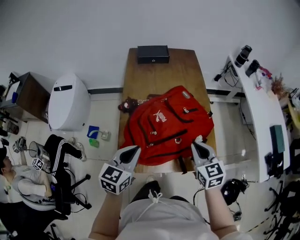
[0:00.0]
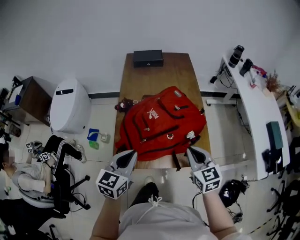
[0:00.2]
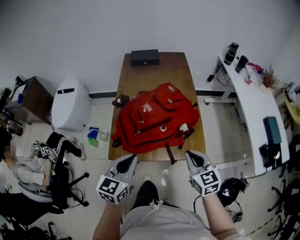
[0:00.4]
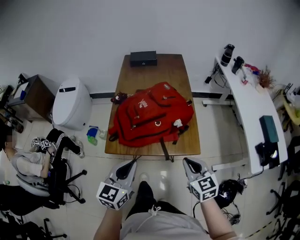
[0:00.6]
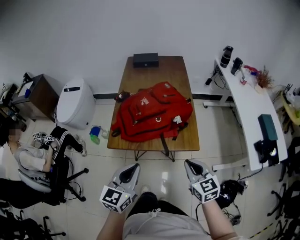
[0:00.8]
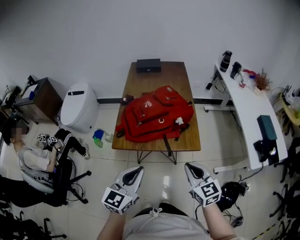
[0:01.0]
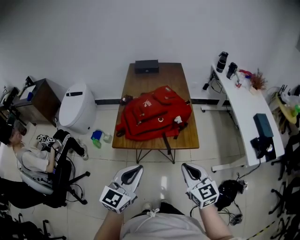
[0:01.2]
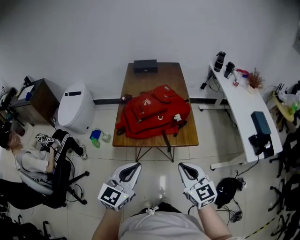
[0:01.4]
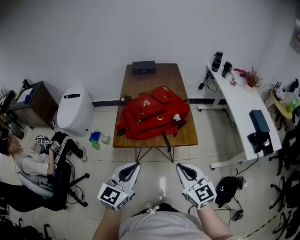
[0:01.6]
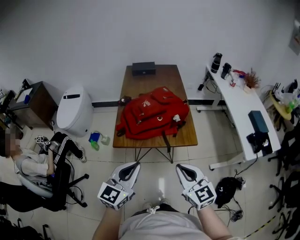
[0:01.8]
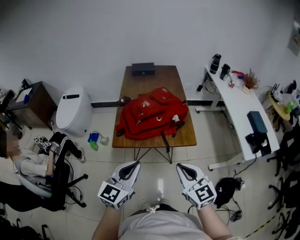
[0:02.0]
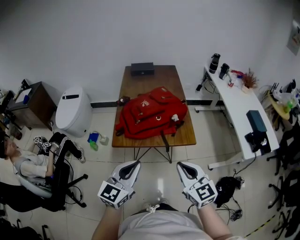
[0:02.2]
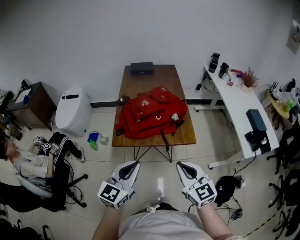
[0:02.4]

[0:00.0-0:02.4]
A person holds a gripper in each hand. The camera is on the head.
0.0 to 1.2 s: The two grippers go about 30 cm backward.
1.2 to 2.4 s: The right gripper shifts by approximately 5 cm.

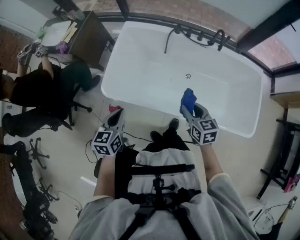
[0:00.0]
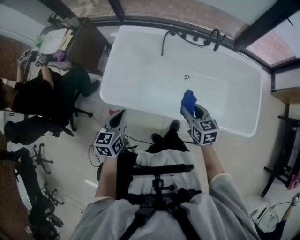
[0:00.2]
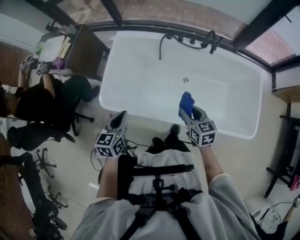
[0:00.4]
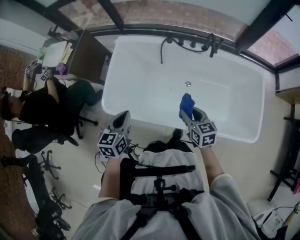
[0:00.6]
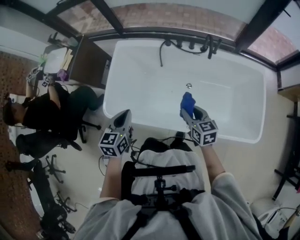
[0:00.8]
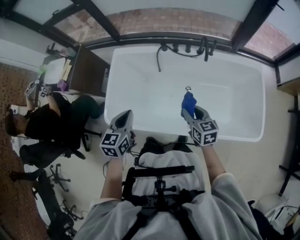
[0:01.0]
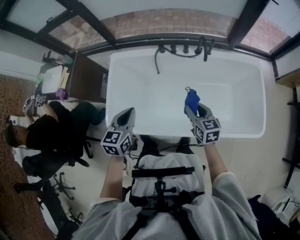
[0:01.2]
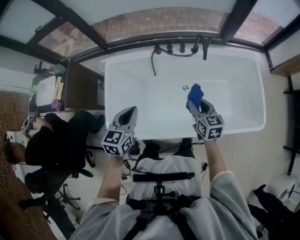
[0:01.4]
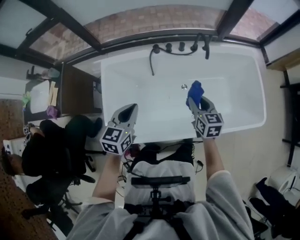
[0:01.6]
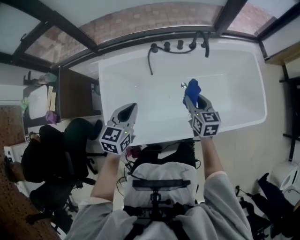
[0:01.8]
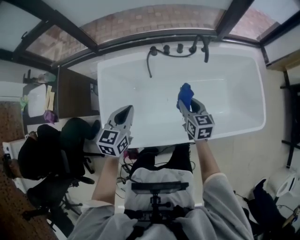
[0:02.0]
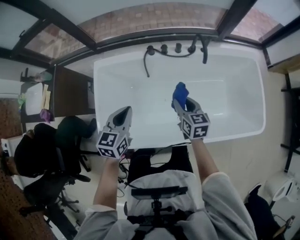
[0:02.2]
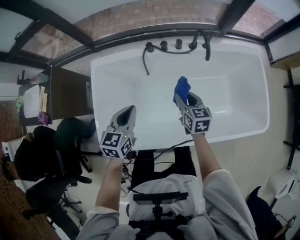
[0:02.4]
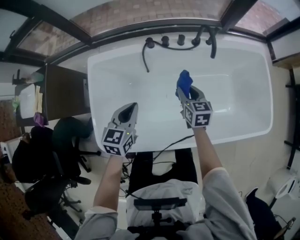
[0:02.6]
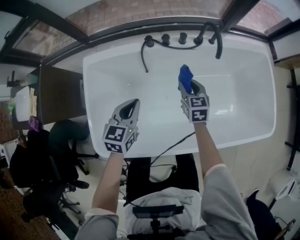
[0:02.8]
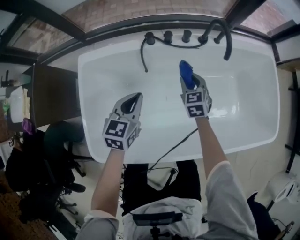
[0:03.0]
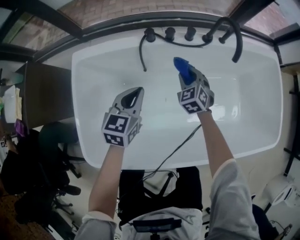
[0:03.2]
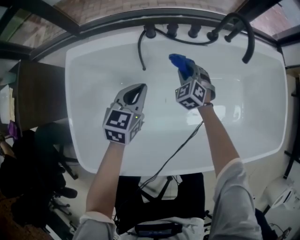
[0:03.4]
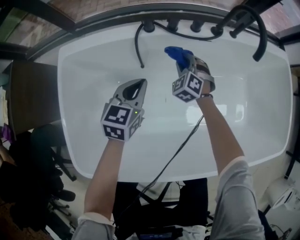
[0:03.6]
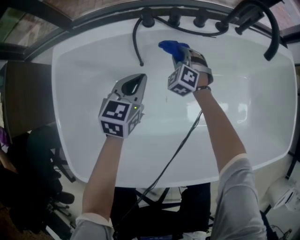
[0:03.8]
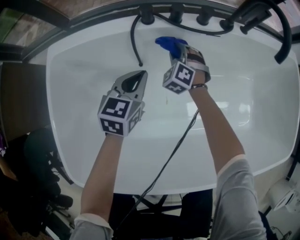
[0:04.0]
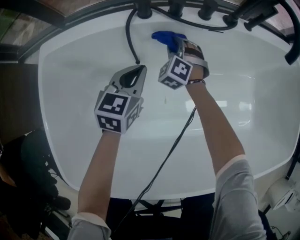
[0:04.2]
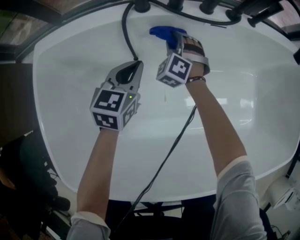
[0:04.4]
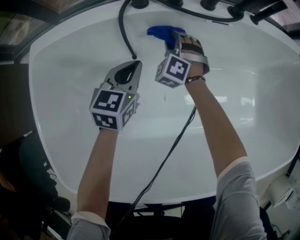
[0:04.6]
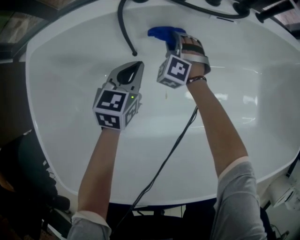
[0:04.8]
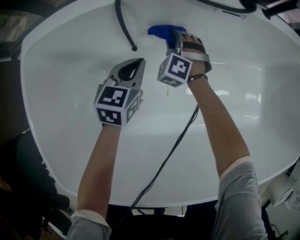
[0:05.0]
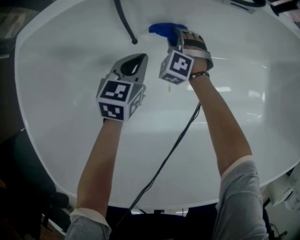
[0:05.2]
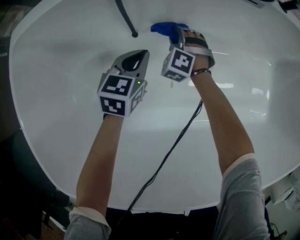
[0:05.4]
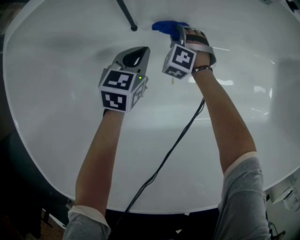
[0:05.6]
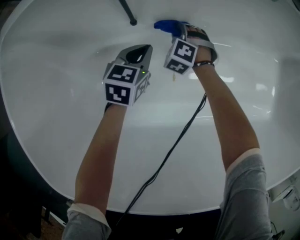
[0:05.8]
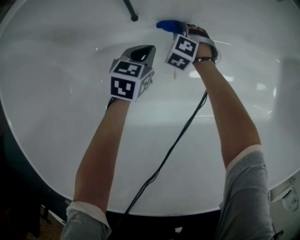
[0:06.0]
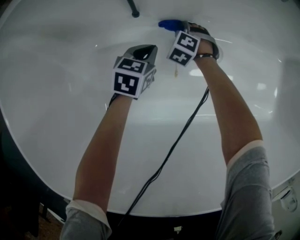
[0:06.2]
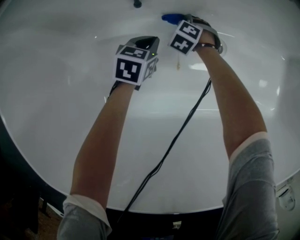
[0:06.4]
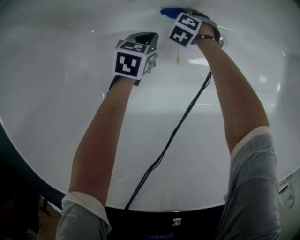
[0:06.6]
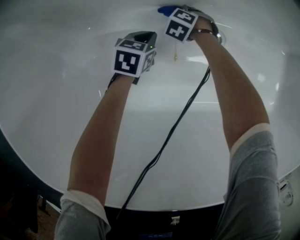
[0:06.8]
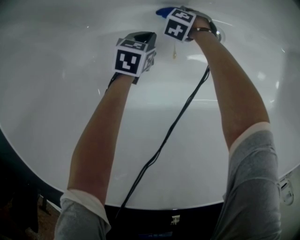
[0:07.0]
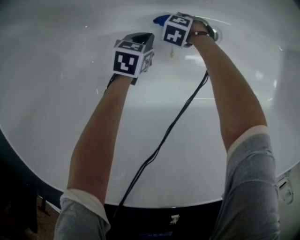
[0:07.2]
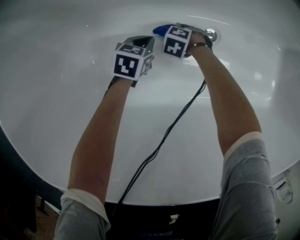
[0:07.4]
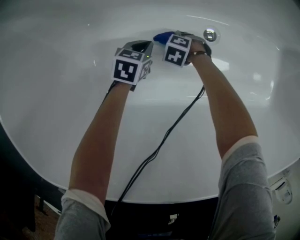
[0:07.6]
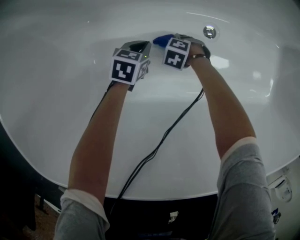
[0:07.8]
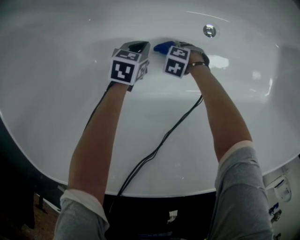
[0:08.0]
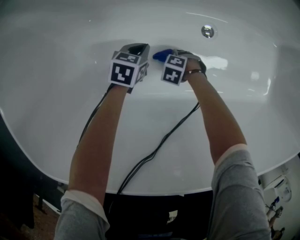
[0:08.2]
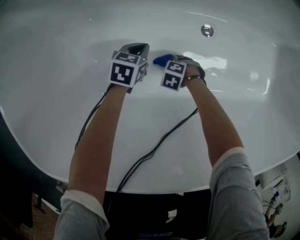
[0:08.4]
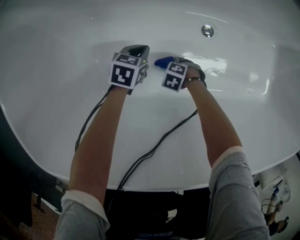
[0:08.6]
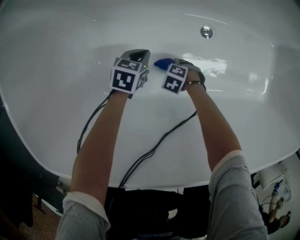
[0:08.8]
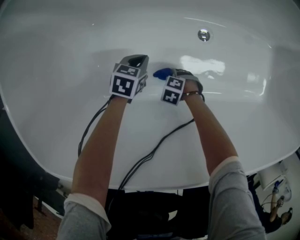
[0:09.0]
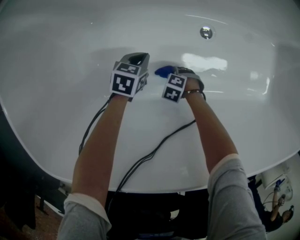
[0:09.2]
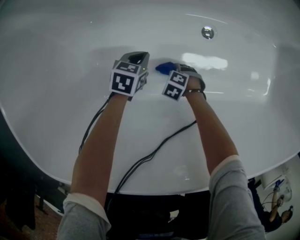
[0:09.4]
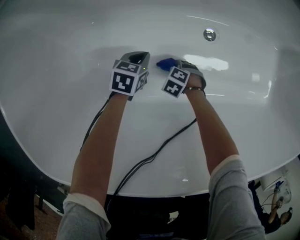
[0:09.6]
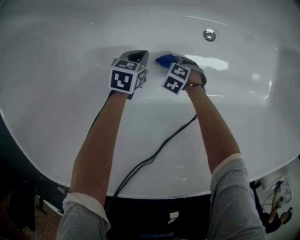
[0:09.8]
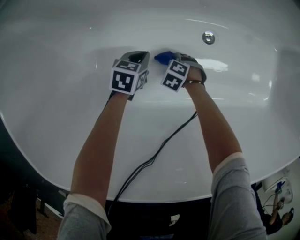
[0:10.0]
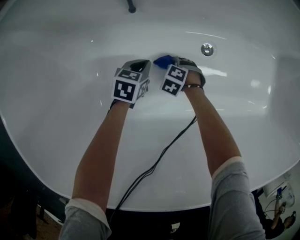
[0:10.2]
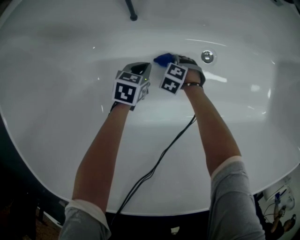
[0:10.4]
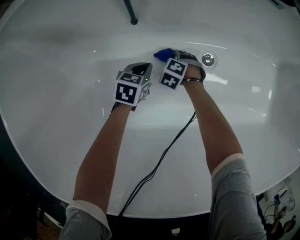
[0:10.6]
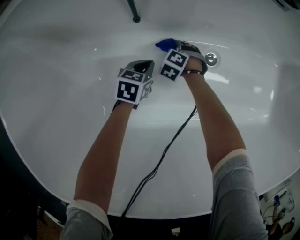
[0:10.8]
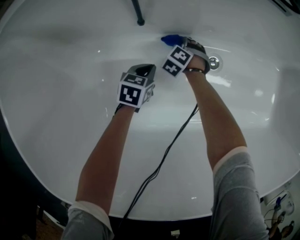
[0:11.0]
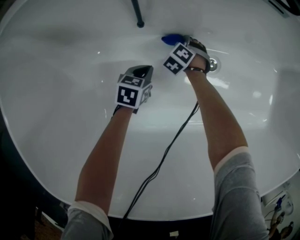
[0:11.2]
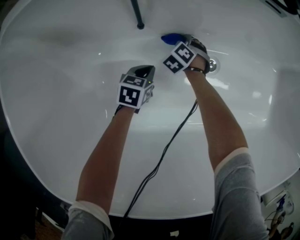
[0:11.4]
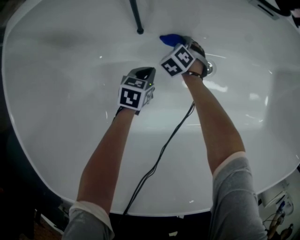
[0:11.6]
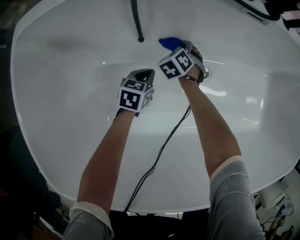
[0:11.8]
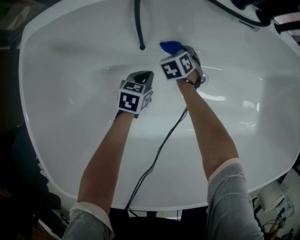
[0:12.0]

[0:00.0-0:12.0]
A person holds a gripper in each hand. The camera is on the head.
0.0 to 1.6 s: The right gripper moves about 20 cm, and changes its angle by some 30 degrees. Meanwhile the left gripper shifts by roughly 30 cm, and turns by approximately 30 degrees.
1.6 to 3.0 s: Both grippers travel together downward and forward, approximately 30 cm. The right gripper turns by about 20 degrees.
3.0 to 4.4 s: The left gripper is displaced downward and forward by some 30 cm. The right gripper moves downward, forward and to the left, approximately 30 cm, and rolls counterclockwise, seen from behind, by roughly 50 degrees.
4.4 to 6.0 s: The grippers both shift downward by roughly 25 cm. The right gripper rotates about 20 degrees.
6.0 to 7.6 s: The left gripper moves downward, roughly 5 cm, while the right gripper ends up about 15 cm from where it was, and turns by approximately 30 degrees.
7.6 to 9.0 s: The left gripper shifts by approximately 5 cm. Meanwhile the right gripper ends up roughly 15 cm from where it was.
9.0 to 10.4 s: The right gripper changes place by roughly 20 cm; the left gripper ends up roughly 10 cm from where it was.
10.4 to 12.0 s: The left gripper moves upward, some 10 cm. The right gripper moves upward, some 15 cm, and swivels about 50 degrees.

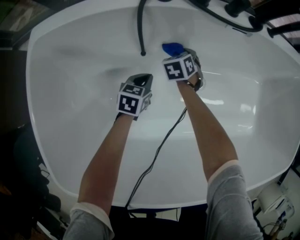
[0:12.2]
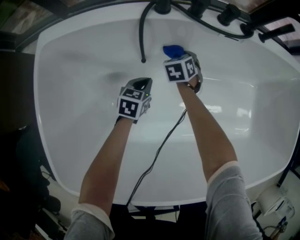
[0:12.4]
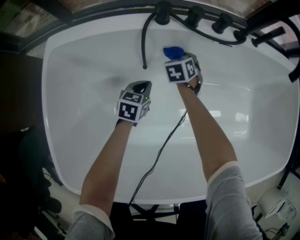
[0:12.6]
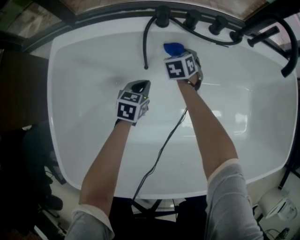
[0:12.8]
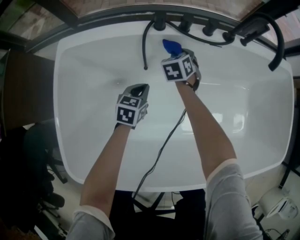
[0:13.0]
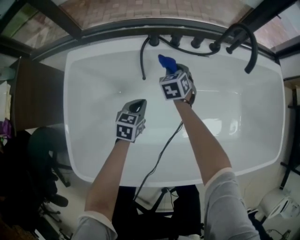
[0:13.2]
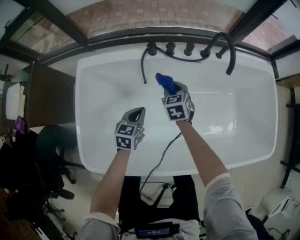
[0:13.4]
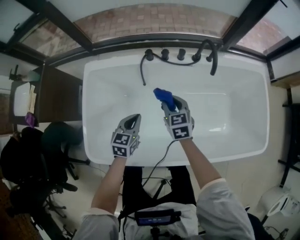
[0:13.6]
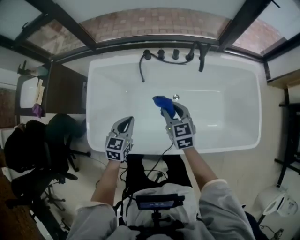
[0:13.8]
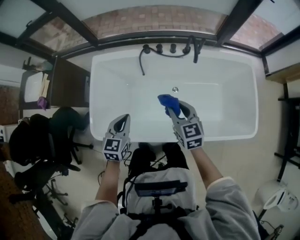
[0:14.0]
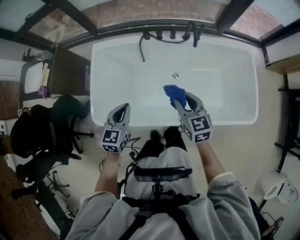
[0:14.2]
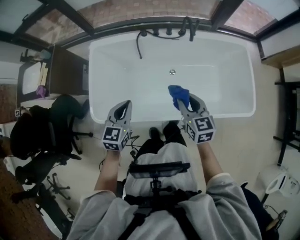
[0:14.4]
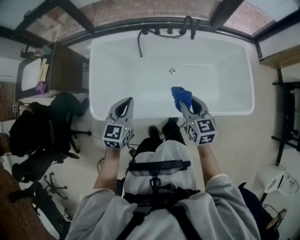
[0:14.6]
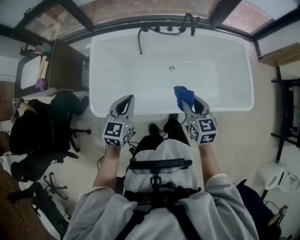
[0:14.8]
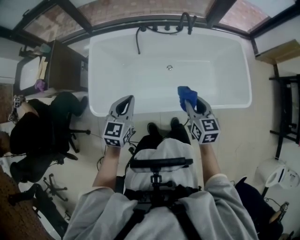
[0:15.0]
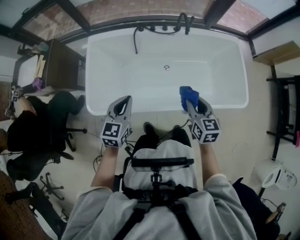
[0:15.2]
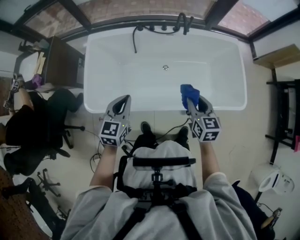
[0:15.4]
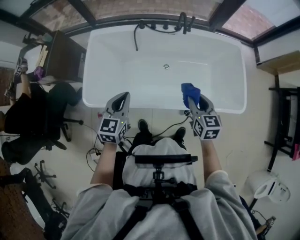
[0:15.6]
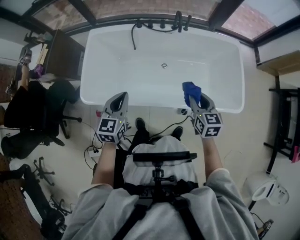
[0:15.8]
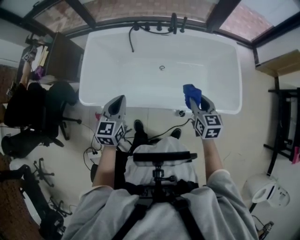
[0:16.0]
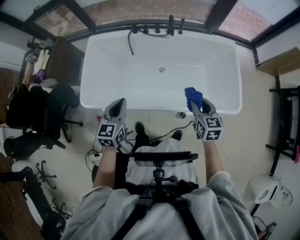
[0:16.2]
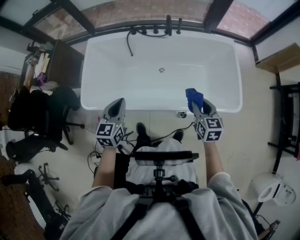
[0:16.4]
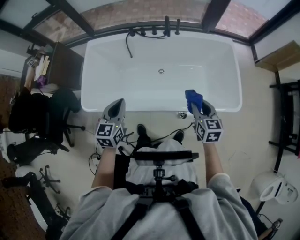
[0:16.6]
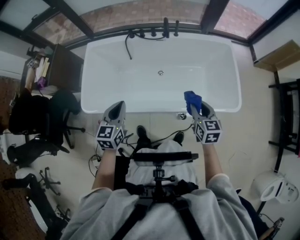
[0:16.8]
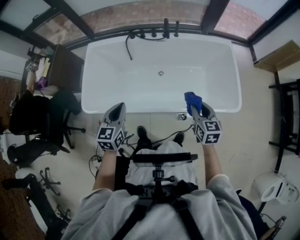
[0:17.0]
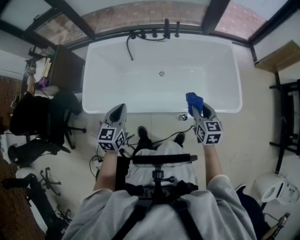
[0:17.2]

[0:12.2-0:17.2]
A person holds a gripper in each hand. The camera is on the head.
12.2 to 13.8 s: The two grippers go roughly 50 cm upward. The right gripper swivels about 40 degrees.
13.8 to 15.6 s: The left gripper goes some 25 cm backward and upward. The right gripper travels backward, to the right and upward by about 30 cm.
15.6 to 17.2 s: The left gripper heads to the right and backward, covering about 10 cm. The right gripper heads to the right and backward, covering some 15 cm.

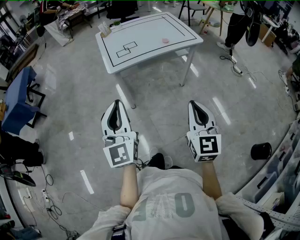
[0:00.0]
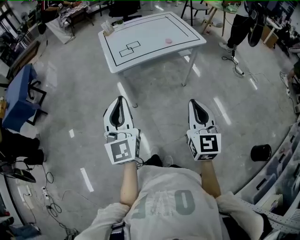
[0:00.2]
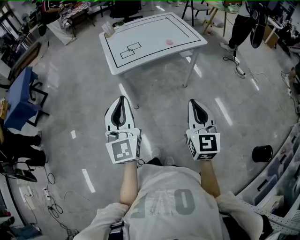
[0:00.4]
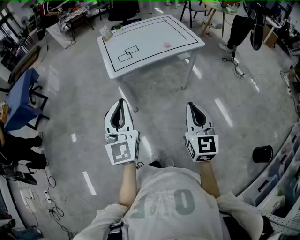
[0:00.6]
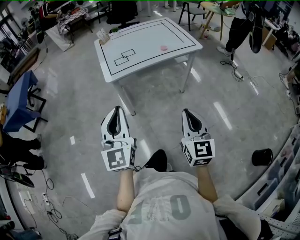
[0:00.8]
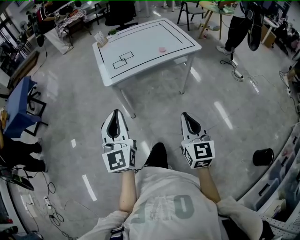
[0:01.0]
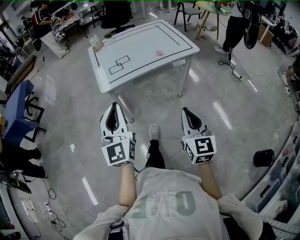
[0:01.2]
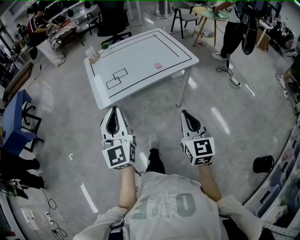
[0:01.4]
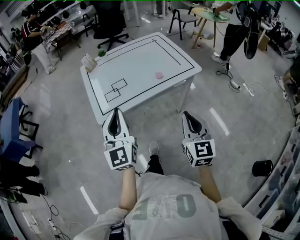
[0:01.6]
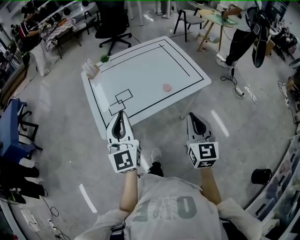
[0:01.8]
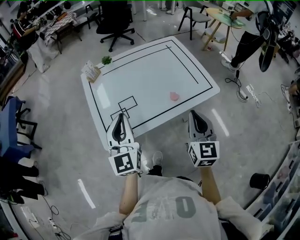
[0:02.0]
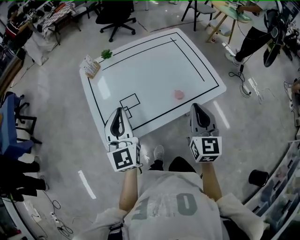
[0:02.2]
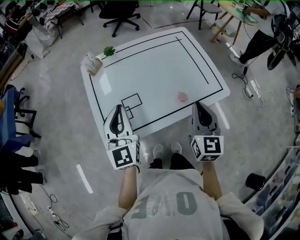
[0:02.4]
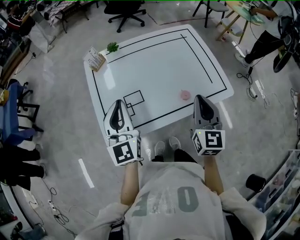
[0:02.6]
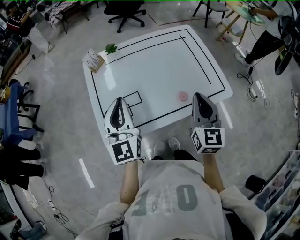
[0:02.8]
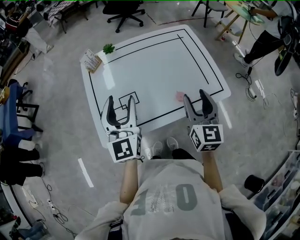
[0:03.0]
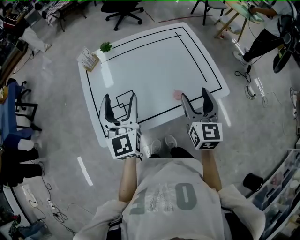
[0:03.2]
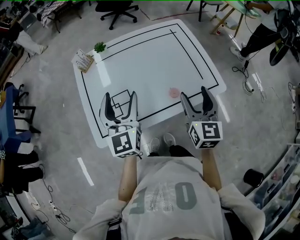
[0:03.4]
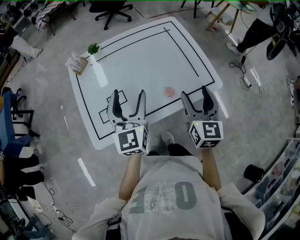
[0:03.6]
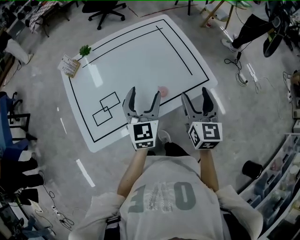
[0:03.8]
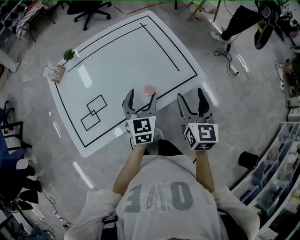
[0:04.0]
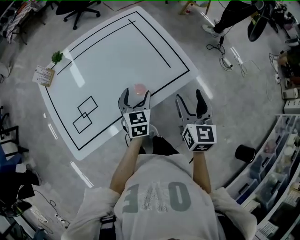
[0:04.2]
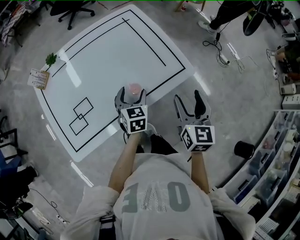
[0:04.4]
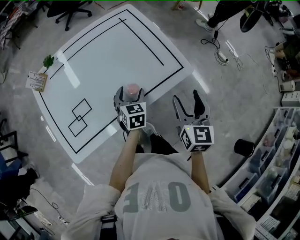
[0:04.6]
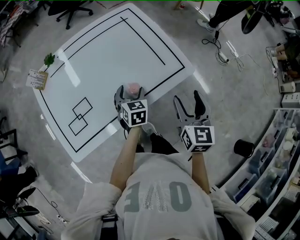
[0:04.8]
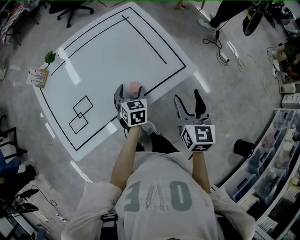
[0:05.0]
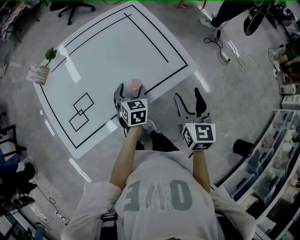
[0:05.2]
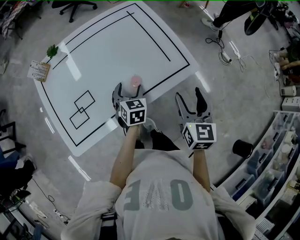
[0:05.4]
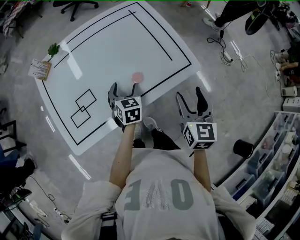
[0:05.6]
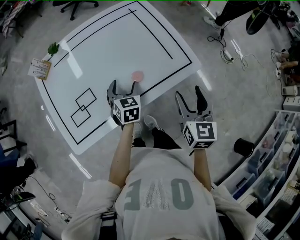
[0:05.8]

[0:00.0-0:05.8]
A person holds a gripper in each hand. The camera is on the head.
0.0 to 1.4 s: Both grippers travel together forward, roughly 20 cm.
1.4 to 2.8 s: The two grippers go some 40 cm forward.
2.8 to 4.4 s: The right gripper moves to the right and downward, approximately 20 cm, and opens its fingers. Meanwhile the left gripper heads to the right and downward, covering about 35 cm, points its fingers roughly 40 degrees further downward, and opens up.
4.4 to 5.8 s: The left gripper goes approximately 5 cm to the left.
